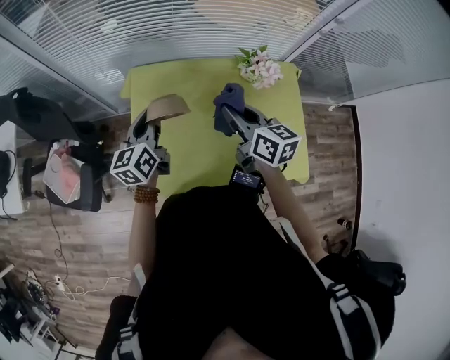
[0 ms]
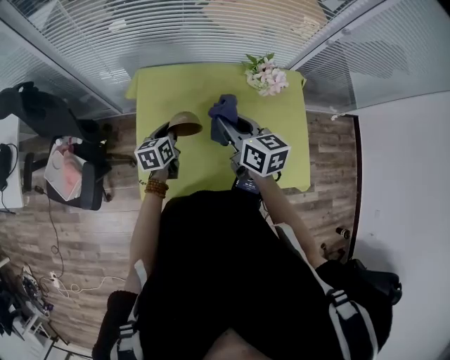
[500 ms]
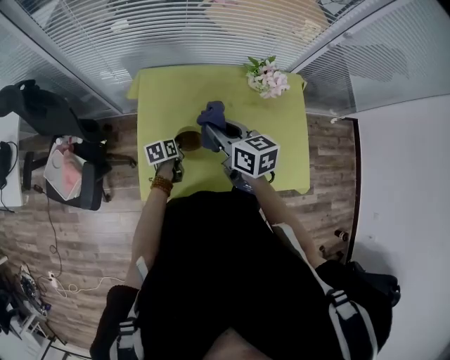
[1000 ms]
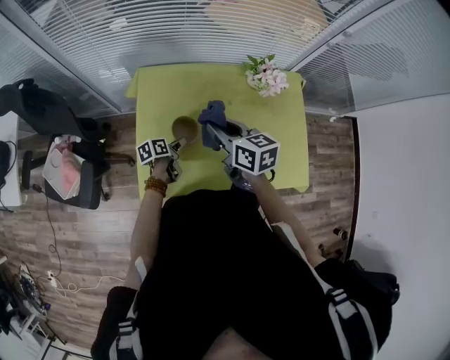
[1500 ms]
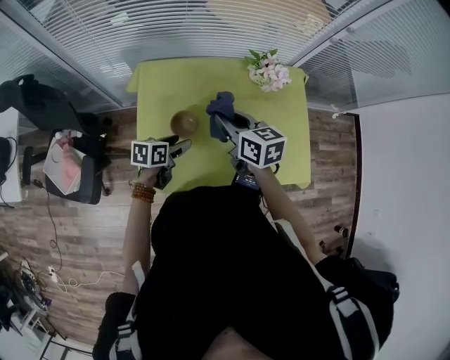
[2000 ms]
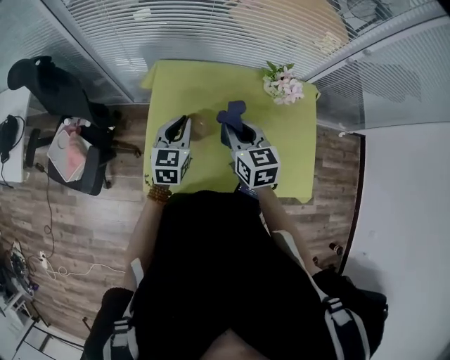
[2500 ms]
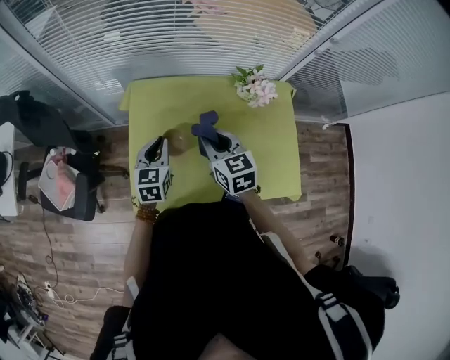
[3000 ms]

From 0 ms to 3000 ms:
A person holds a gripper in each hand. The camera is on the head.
From 0 ms to 1500 ms: The left gripper goes roughly 25 cm downward, turns by about 50 degrees, and opens up. The right gripper moves to the left, about 5 cm.
From 1500 ms to 3000 ms: The right gripper swivels about 20 degrees. Meanwhile the left gripper heads upward, covering about 20 cm, rolls clockwise, seen from behind, by about 50 degrees, and closes its fingers.

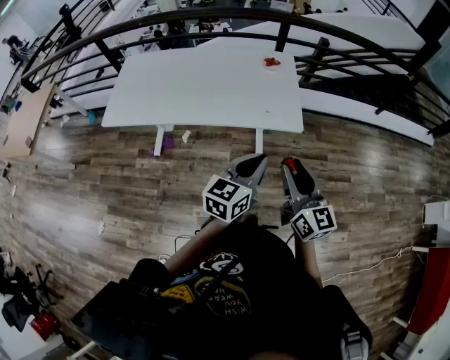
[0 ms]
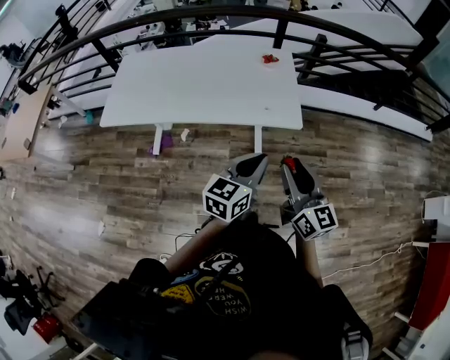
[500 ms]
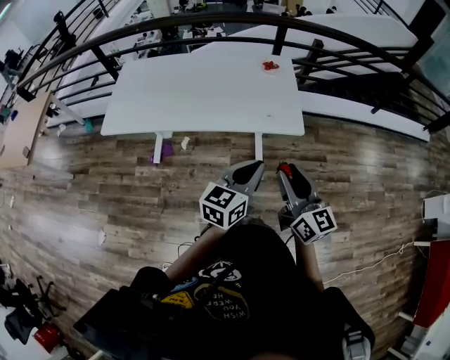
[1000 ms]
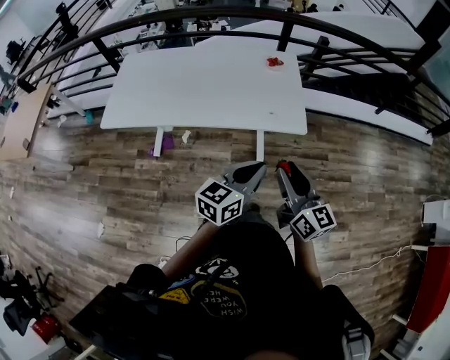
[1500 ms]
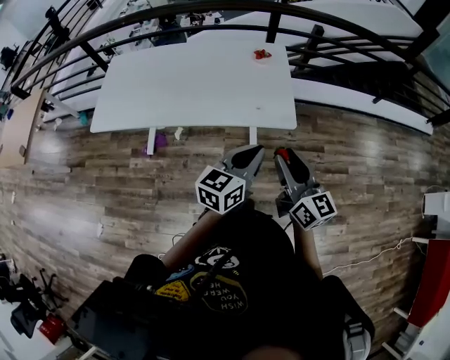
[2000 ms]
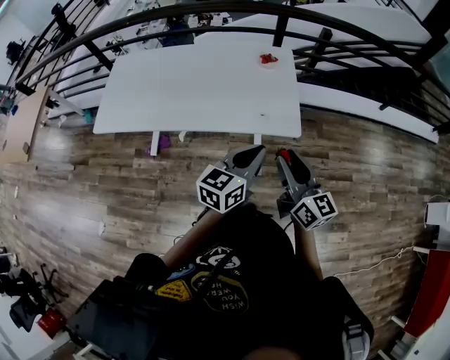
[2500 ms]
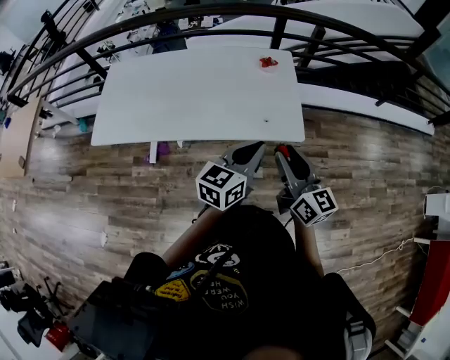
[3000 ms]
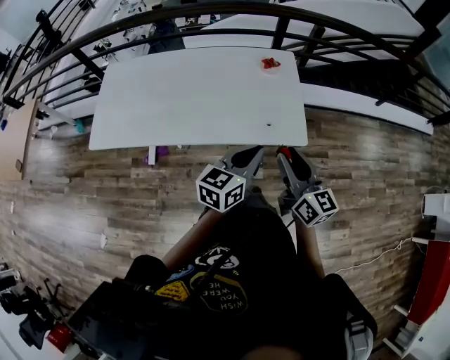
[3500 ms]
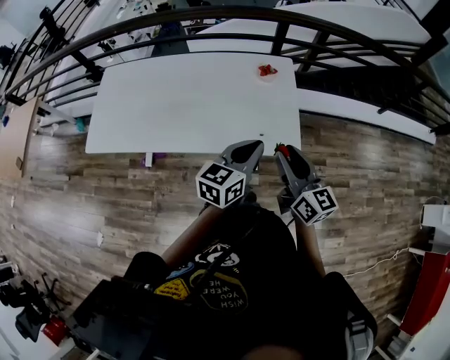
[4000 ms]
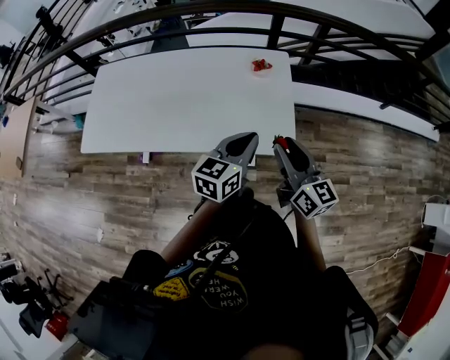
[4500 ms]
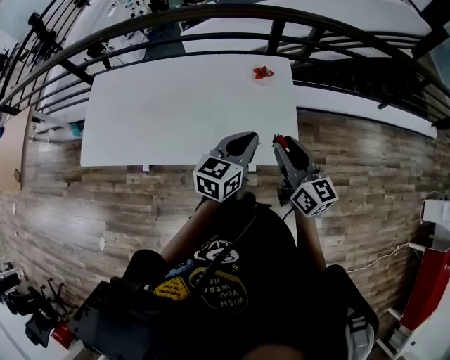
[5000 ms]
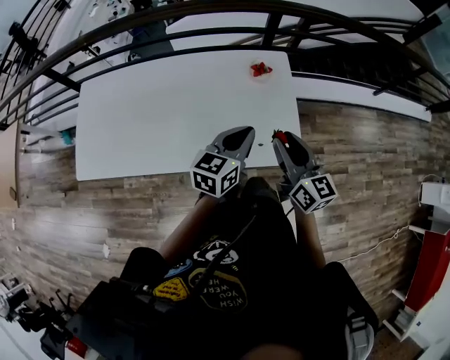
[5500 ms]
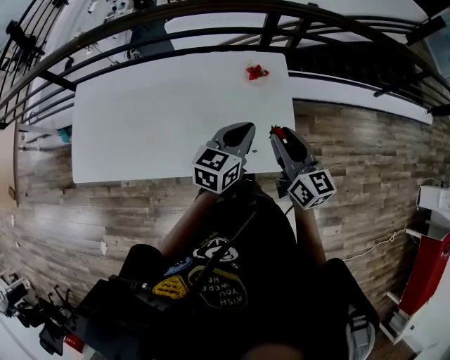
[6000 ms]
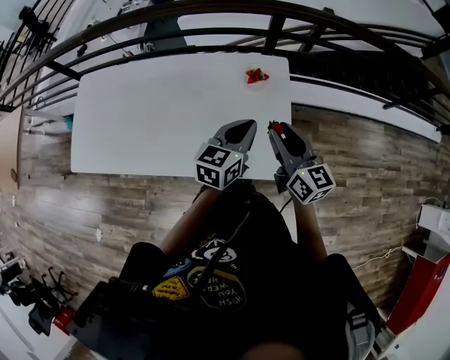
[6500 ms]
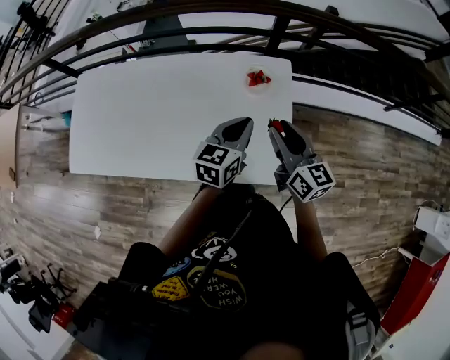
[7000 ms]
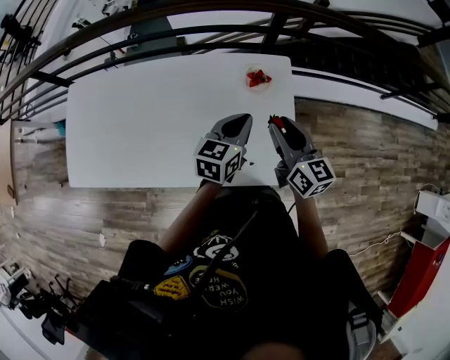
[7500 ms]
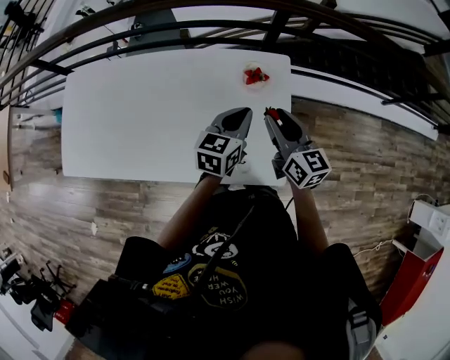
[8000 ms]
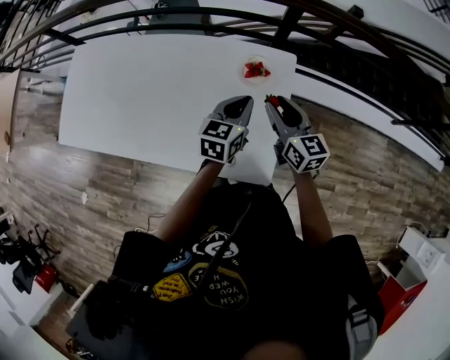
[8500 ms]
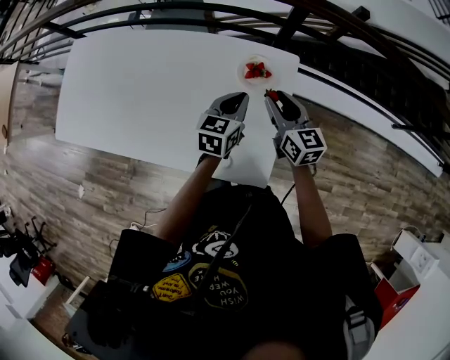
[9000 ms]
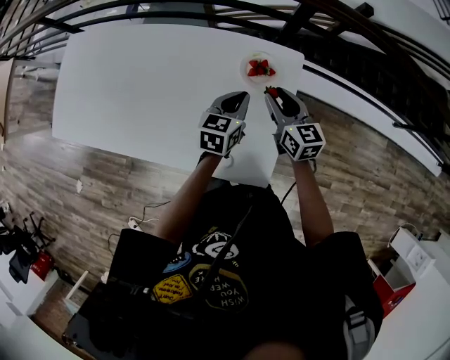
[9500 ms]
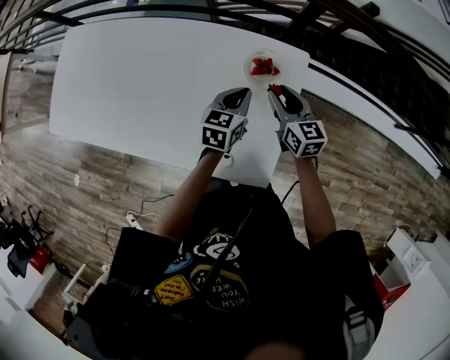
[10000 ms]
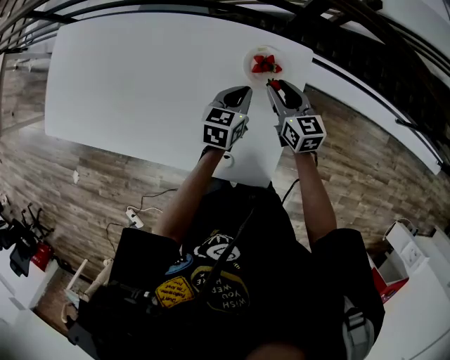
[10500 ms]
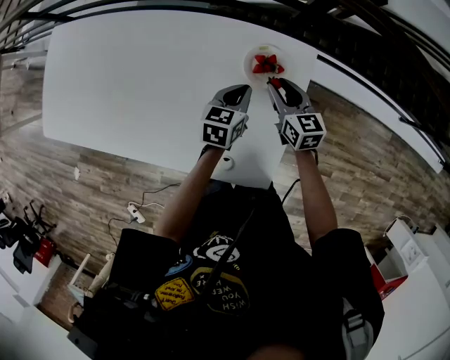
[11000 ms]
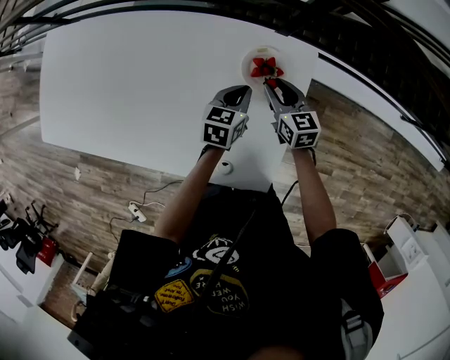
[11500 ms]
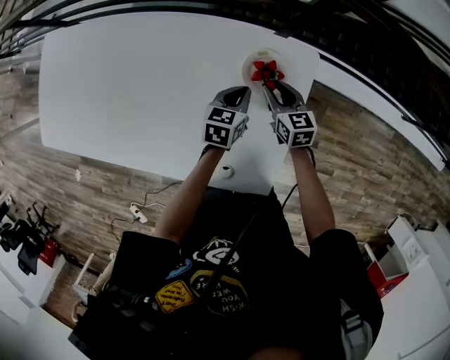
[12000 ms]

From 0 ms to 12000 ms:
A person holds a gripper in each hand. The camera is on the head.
From 0 ms to 2000 ms: Both grippers move forward, approximately 5 cm.
From 2000 ms to 4000 ms: Both grippers travel together forward, roughly 20 cm.
From 4000 ms to 6000 ms: Both grippers travel together forward, about 20 cm.
From 6000 ms to 8000 ms: The right gripper moves forward, some 15 cm; the left gripper travels forward and downward by some 15 cm.
From 8000 ms to 10000 ms: Both grippers travel together downward and forward, some 15 cm.
From 10000 ms to 12000 ms: Both grippers move downward and forward, some 10 cm.

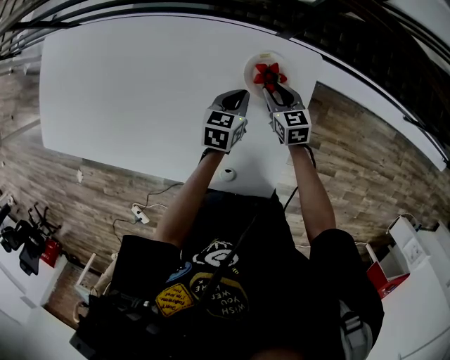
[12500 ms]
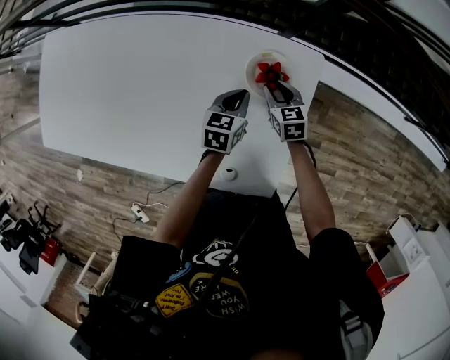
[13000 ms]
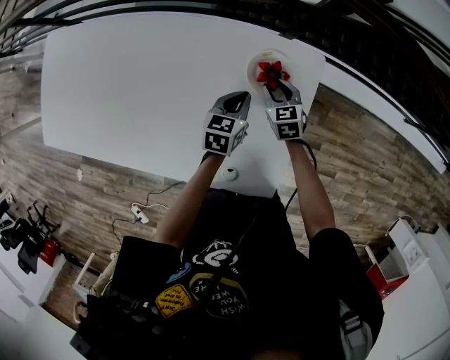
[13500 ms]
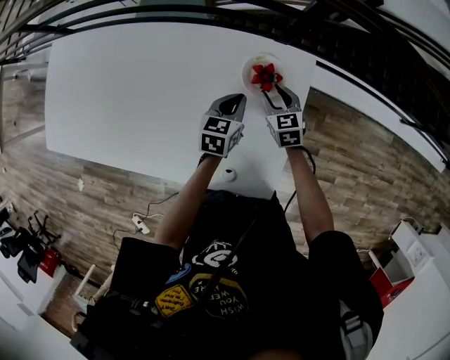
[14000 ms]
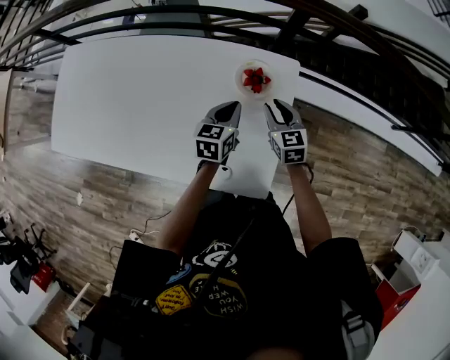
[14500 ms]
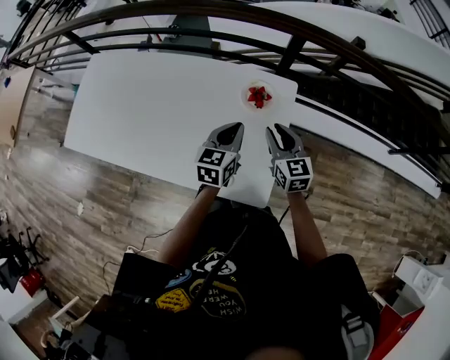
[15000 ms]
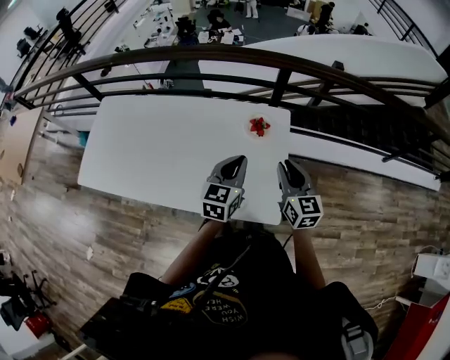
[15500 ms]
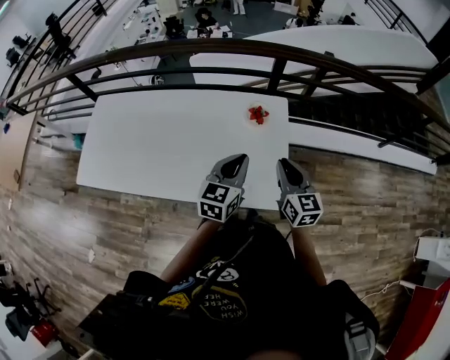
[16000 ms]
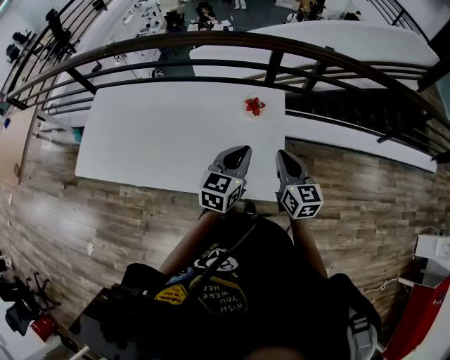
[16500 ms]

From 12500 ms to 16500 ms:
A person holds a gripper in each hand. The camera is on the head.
From 12500 ms to 14500 ms: The grippers both shift upward and backward by roughly 10 cm.
From 14500 ms to 16500 ms: The grippers both shift backward and upward by some 30 cm. The right gripper rotates approximately 20 degrees, and closes its fingers, while the left gripper turns by roughly 20 degrees.

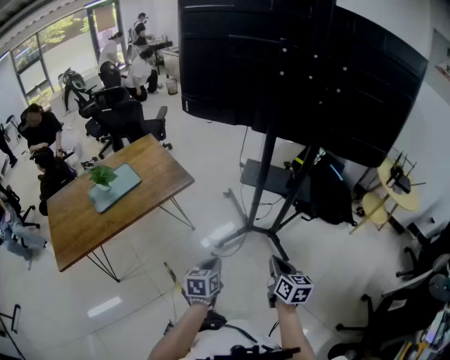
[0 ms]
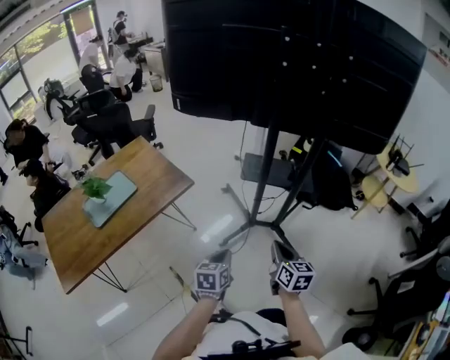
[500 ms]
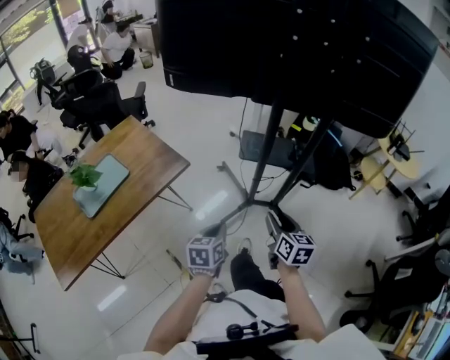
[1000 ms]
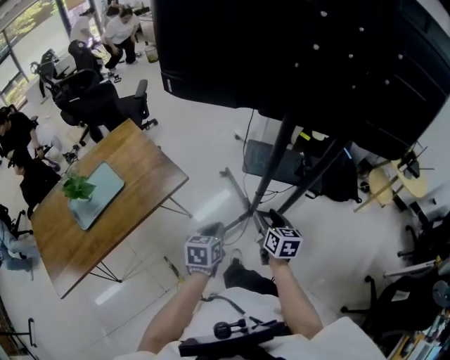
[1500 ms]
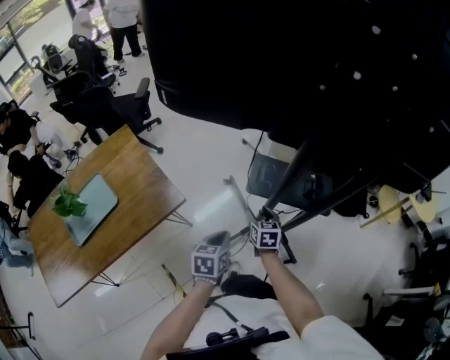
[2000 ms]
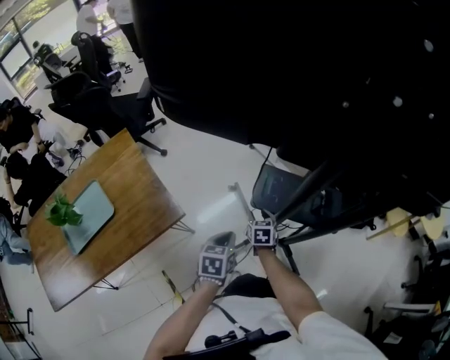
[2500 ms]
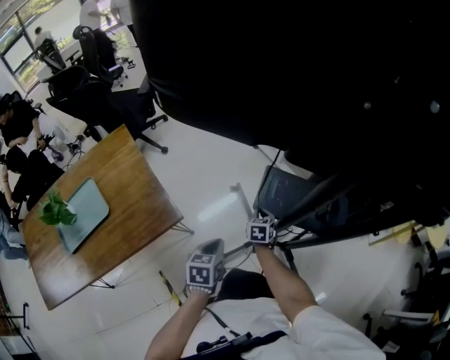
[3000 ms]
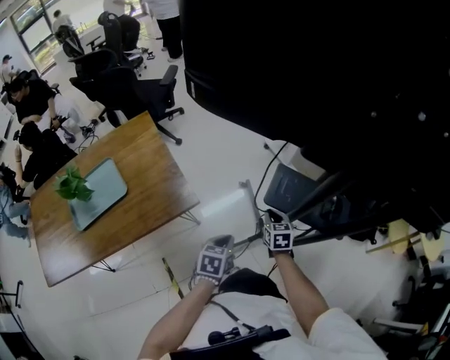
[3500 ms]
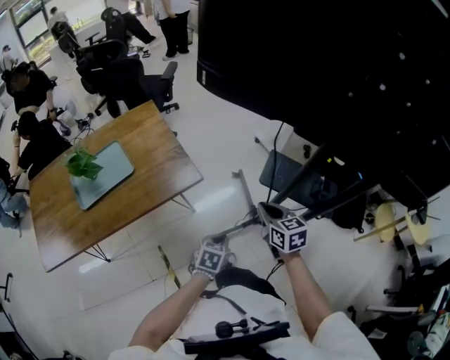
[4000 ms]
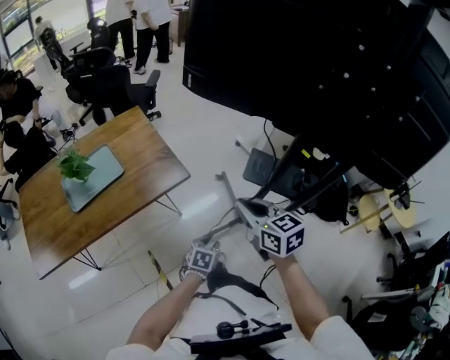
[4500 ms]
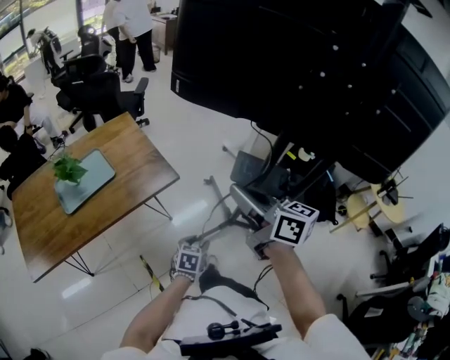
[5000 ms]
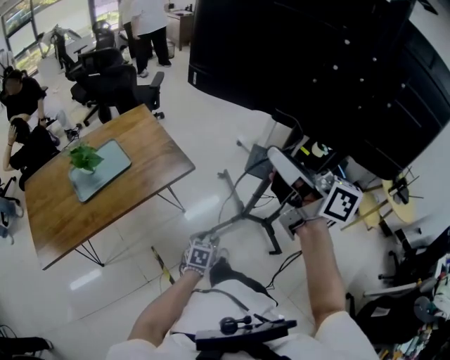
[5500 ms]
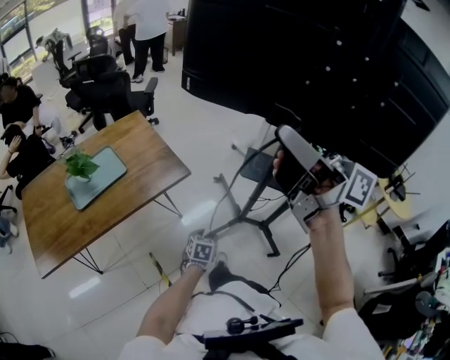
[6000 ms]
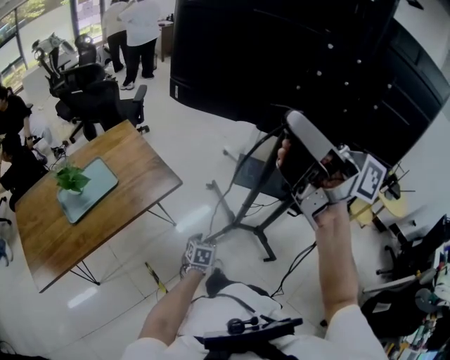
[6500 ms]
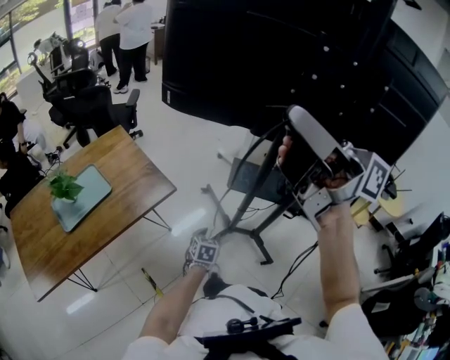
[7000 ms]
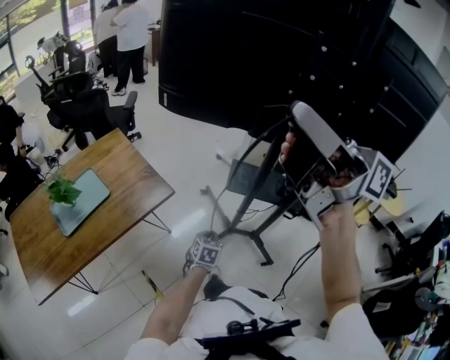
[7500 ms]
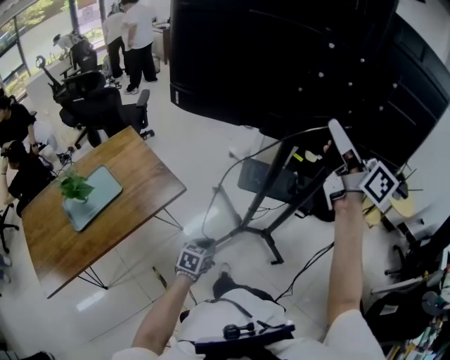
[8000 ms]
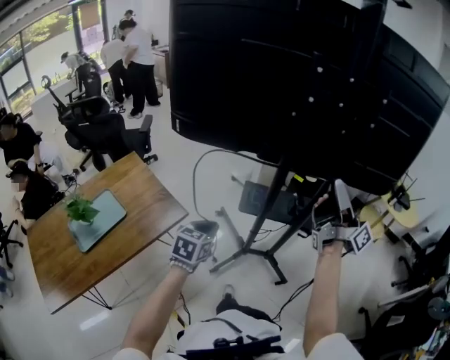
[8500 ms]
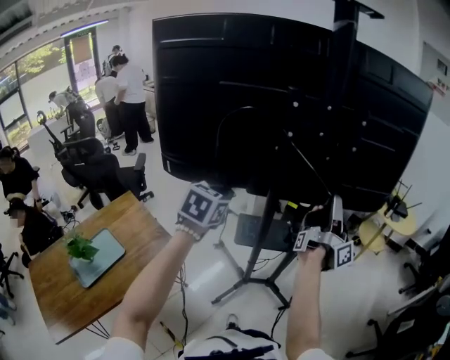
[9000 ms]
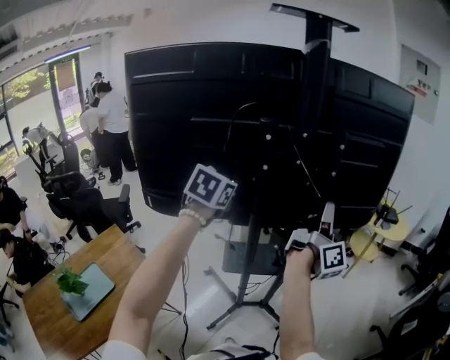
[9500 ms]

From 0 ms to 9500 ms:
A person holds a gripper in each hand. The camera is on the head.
From 0 ms to 2000 ms: Both grippers move forward, some 40 cm. The right gripper opens its fingers.
From 2000 ms to 4000 ms: The right gripper moves upward, backward and to the left, roughly 15 cm, turns by roughly 30 degrees, and closes up; the left gripper shifts approximately 10 cm backward and downward.
From 4000 ms to 5500 ms: The left gripper travels backward by roughly 10 cm, and opens its fingers. Meanwhile the right gripper is displaced upward by about 35 cm, and tilts its fingers roughly 40 degrees upward.
From 5500 ms to 7500 ms: The right gripper moves upward, some 15 cm. Meanwhile the left gripper travels to the right and forward by about 15 cm, and closes up.
From 7500 ms to 9500 ms: The right gripper shifts by about 35 cm, and turns by approximately 80 degrees. The left gripper goes some 50 cm upward, and turns by roughly 30 degrees.
